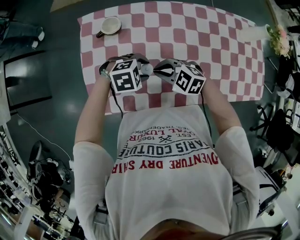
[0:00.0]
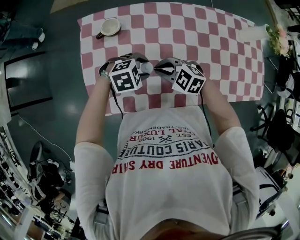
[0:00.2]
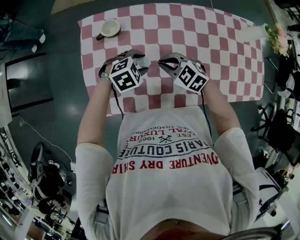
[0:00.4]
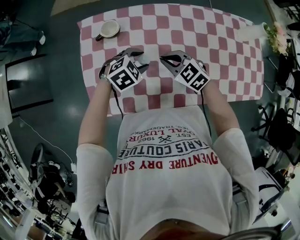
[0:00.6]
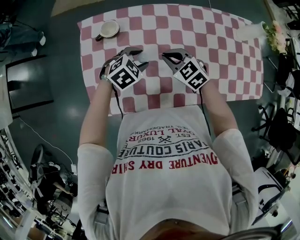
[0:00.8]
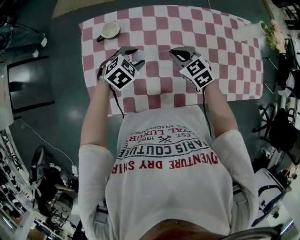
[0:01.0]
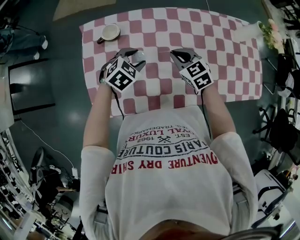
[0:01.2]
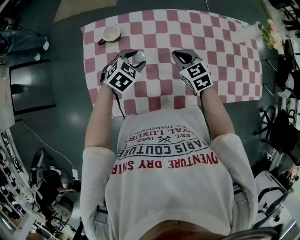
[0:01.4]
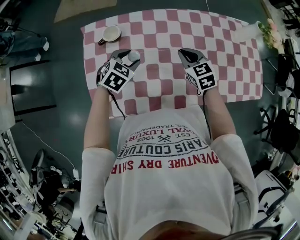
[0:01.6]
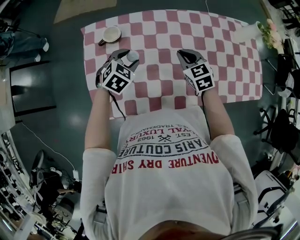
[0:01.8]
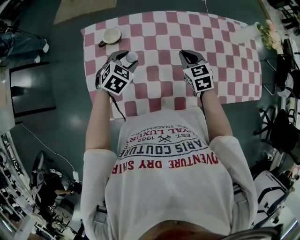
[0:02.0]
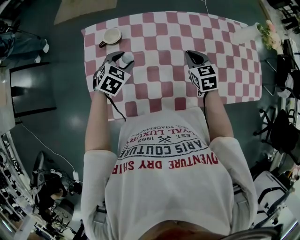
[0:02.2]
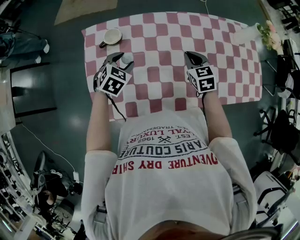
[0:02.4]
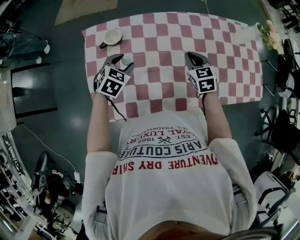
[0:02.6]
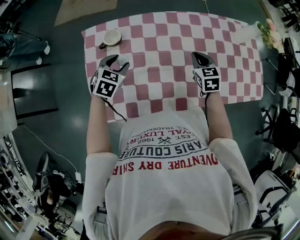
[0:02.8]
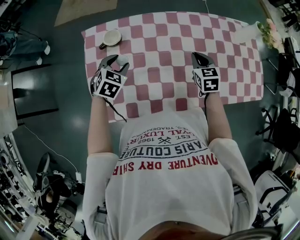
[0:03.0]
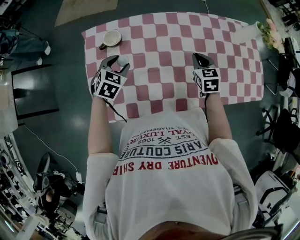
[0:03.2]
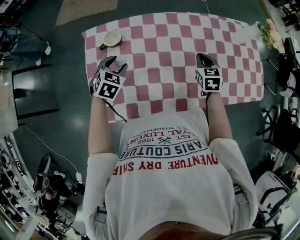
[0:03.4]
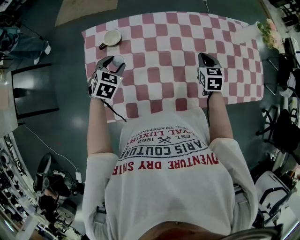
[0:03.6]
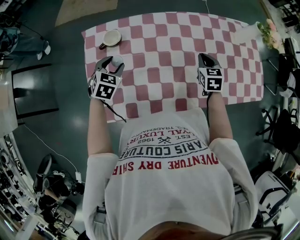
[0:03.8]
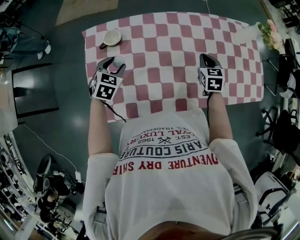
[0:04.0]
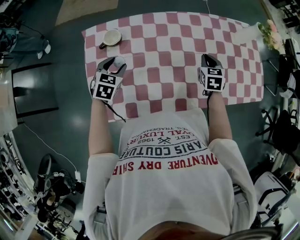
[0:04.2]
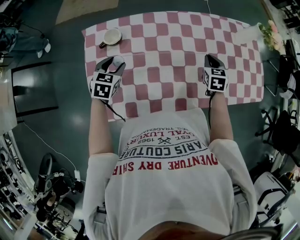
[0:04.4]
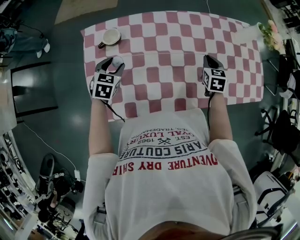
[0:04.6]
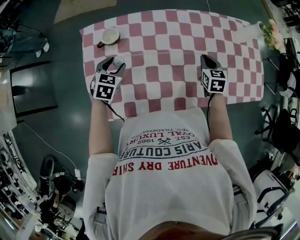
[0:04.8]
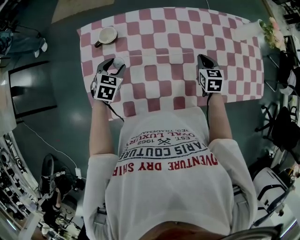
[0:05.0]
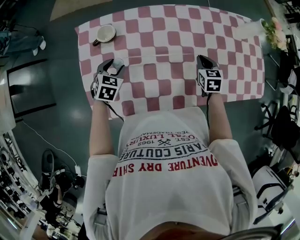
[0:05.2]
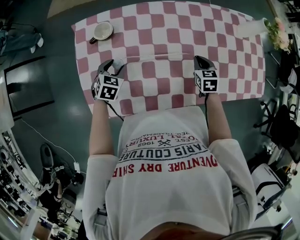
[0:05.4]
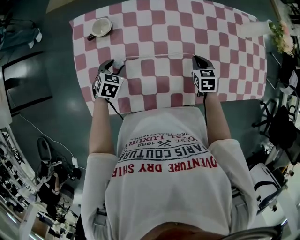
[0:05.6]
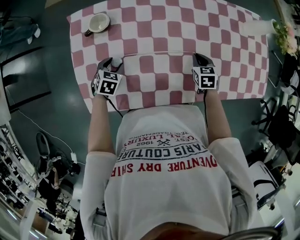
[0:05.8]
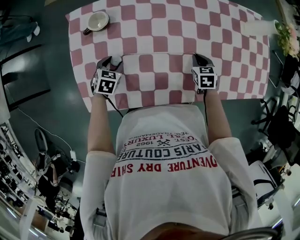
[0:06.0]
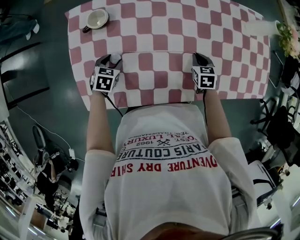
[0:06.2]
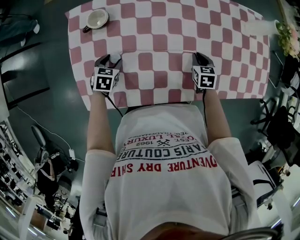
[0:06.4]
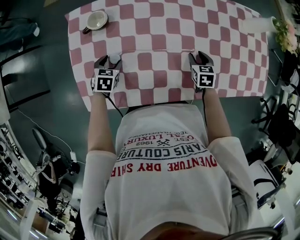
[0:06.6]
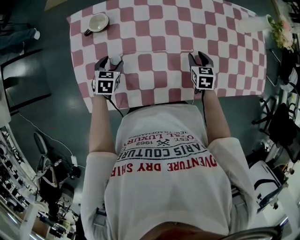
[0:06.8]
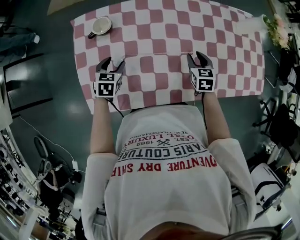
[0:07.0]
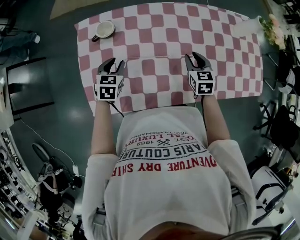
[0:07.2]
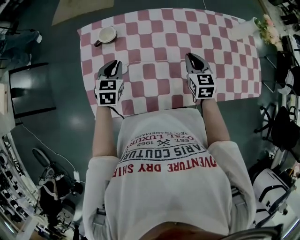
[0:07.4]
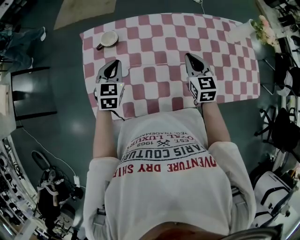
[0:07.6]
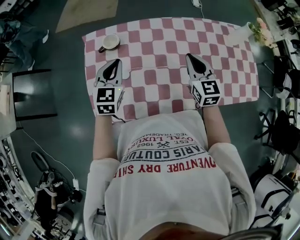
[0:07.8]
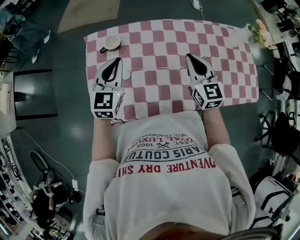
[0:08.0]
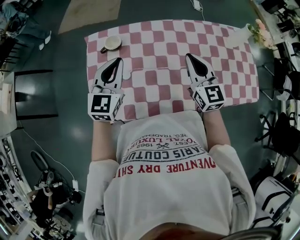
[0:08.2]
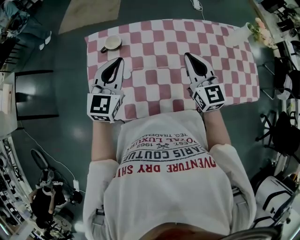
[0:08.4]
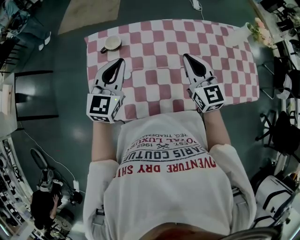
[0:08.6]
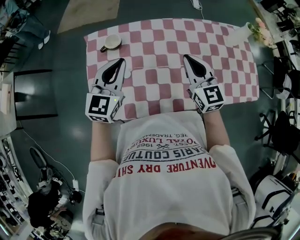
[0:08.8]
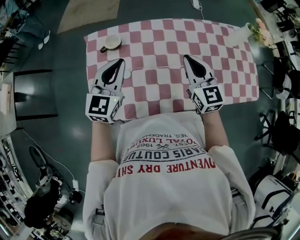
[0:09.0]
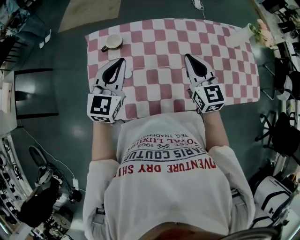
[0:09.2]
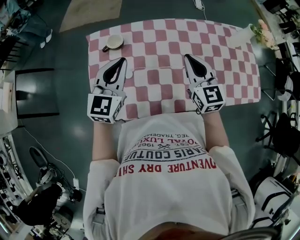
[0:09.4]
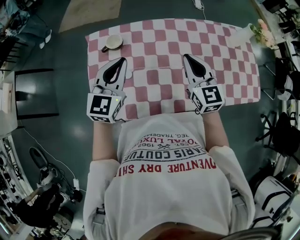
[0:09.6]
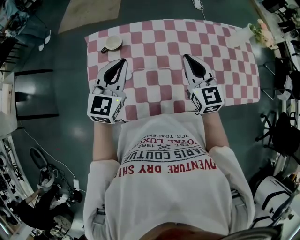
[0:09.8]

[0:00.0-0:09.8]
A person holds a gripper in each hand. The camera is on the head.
0:00.0 to 0:01.4: The right gripper changes place by approximately 15 cm, and turns by some 40 degrees. The left gripper shifts by about 10 cm, and turns by about 40 degrees.
0:01.4 to 0:02.8: The right gripper heads to the right, covering roughly 10 cm, and changes its angle by some 20 degrees, while the left gripper heads to the left, covering about 10 cm.
0:02.8 to 0:04.2: The right gripper moves to the right, approximately 5 cm.
0:04.2 to 0:05.6: The grippers both shift downward by about 10 cm.
0:05.6 to 0:07.0: The right gripper opens up.
0:07.0 to 0:08.4: The two grippers go some 25 cm upward. The left gripper tilts its fingers approximately 40 degrees upward, and closes; the right gripper angles its fingers upward, by roughly 40 degrees, and closes up.
0:08.4 to 0:09.8: The grippers move only a little.

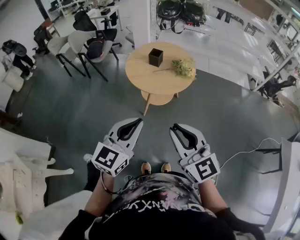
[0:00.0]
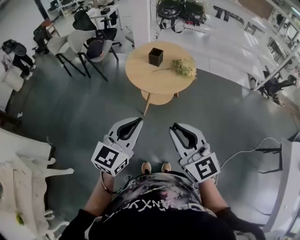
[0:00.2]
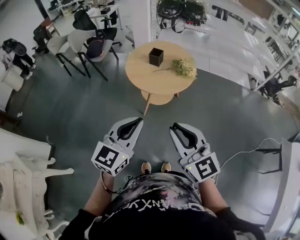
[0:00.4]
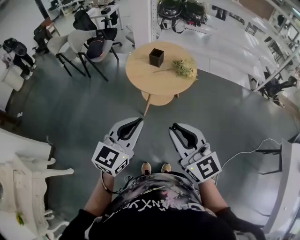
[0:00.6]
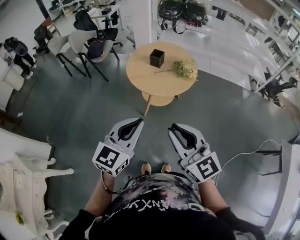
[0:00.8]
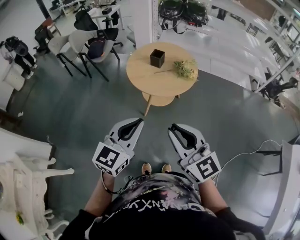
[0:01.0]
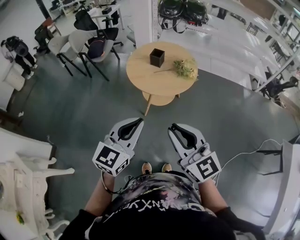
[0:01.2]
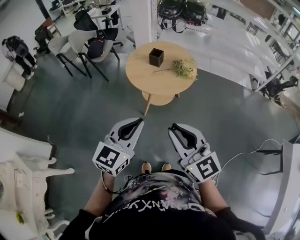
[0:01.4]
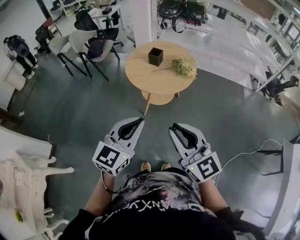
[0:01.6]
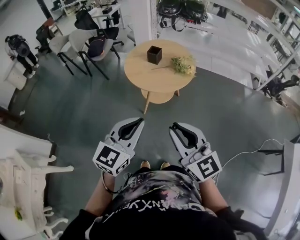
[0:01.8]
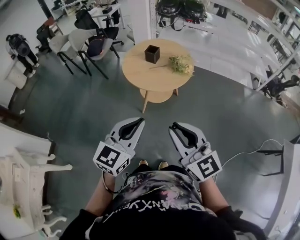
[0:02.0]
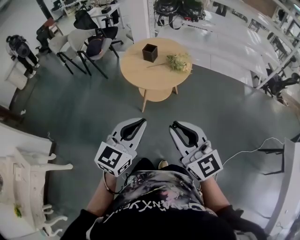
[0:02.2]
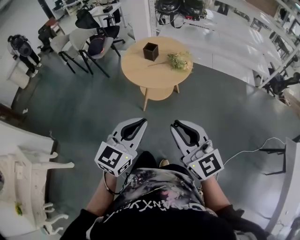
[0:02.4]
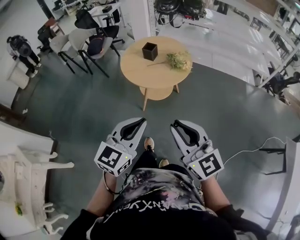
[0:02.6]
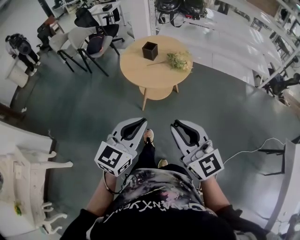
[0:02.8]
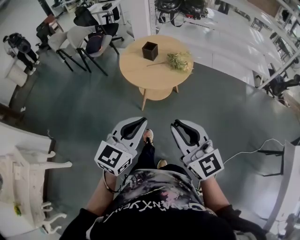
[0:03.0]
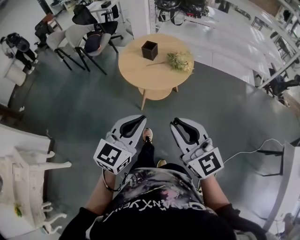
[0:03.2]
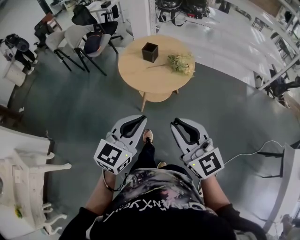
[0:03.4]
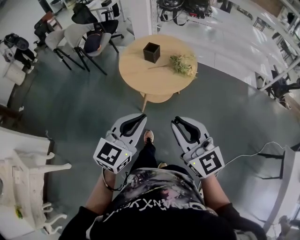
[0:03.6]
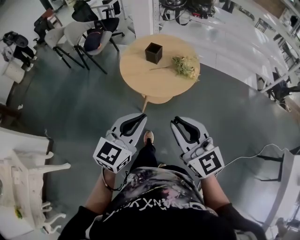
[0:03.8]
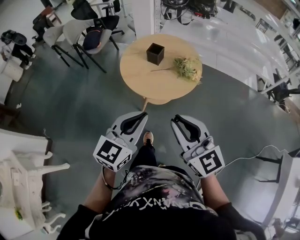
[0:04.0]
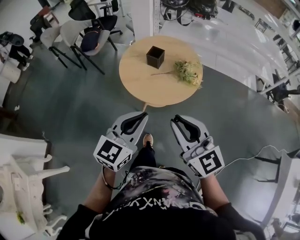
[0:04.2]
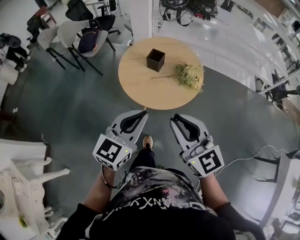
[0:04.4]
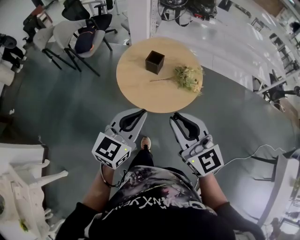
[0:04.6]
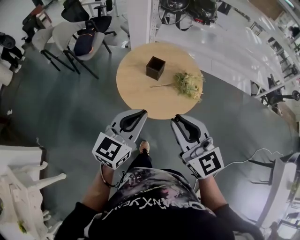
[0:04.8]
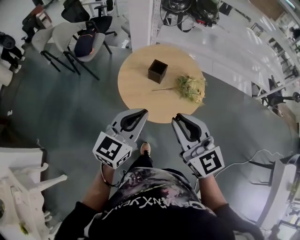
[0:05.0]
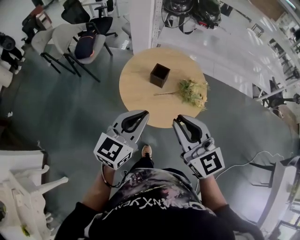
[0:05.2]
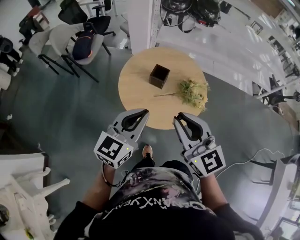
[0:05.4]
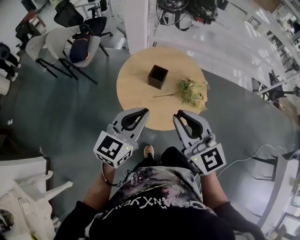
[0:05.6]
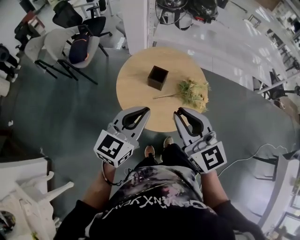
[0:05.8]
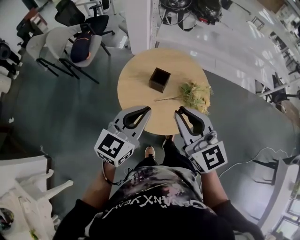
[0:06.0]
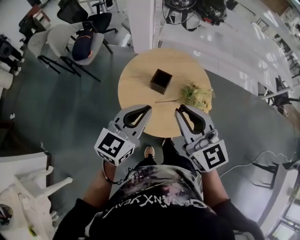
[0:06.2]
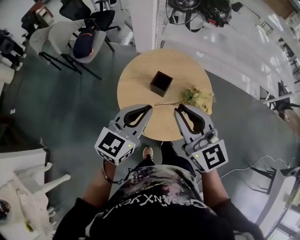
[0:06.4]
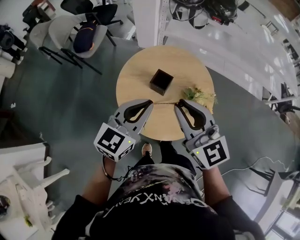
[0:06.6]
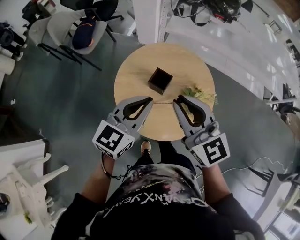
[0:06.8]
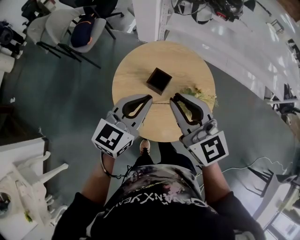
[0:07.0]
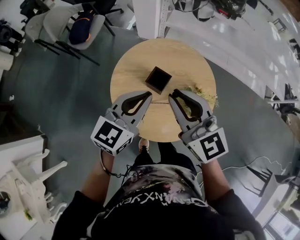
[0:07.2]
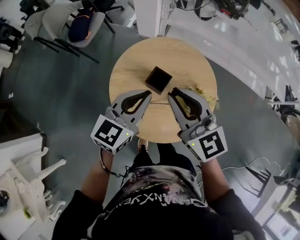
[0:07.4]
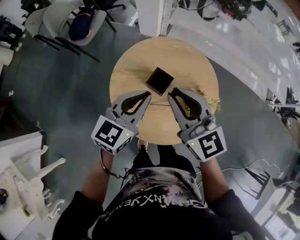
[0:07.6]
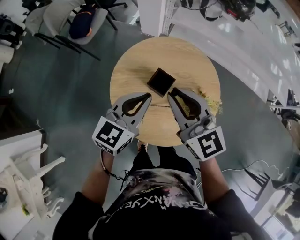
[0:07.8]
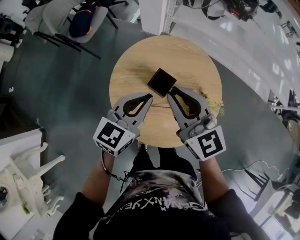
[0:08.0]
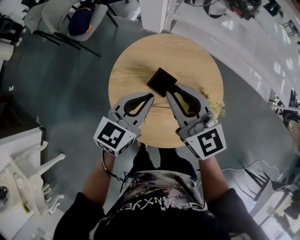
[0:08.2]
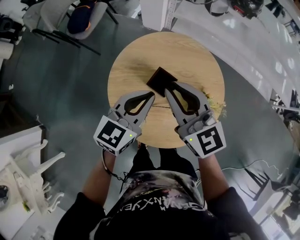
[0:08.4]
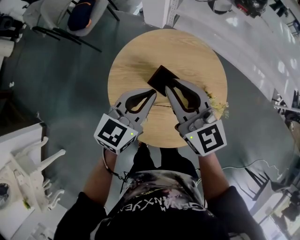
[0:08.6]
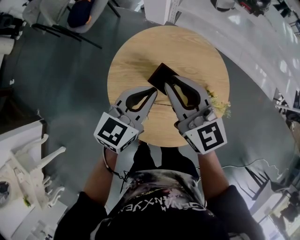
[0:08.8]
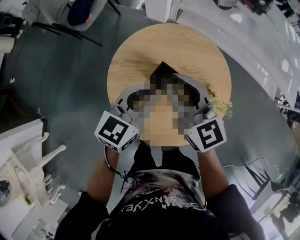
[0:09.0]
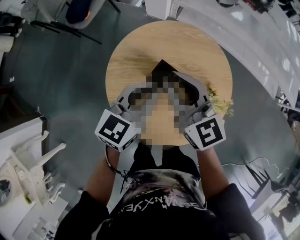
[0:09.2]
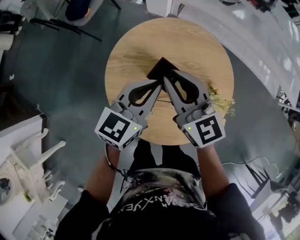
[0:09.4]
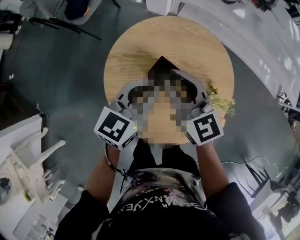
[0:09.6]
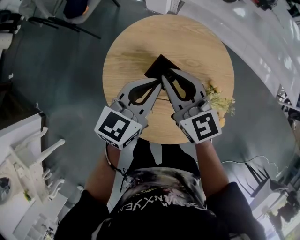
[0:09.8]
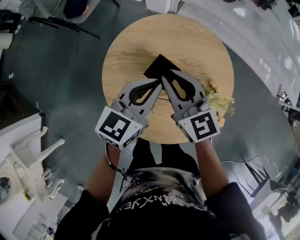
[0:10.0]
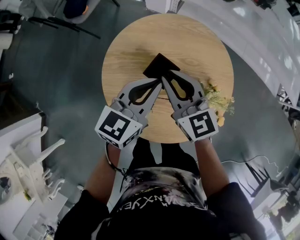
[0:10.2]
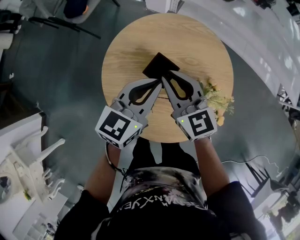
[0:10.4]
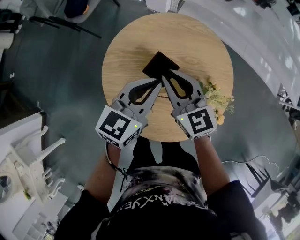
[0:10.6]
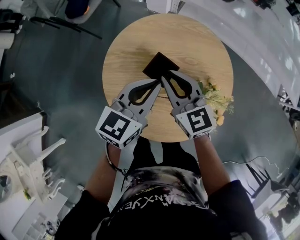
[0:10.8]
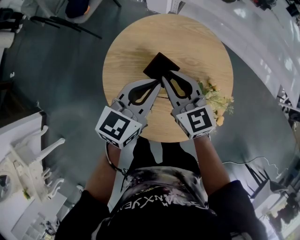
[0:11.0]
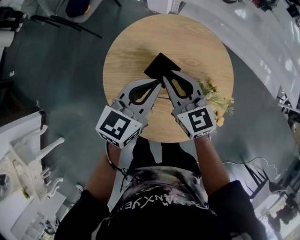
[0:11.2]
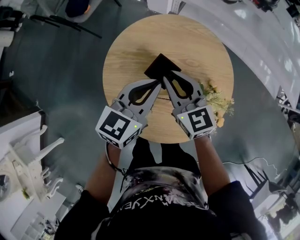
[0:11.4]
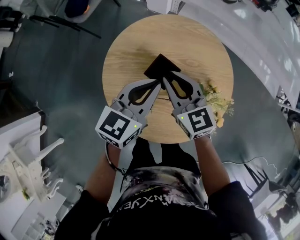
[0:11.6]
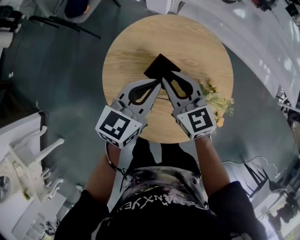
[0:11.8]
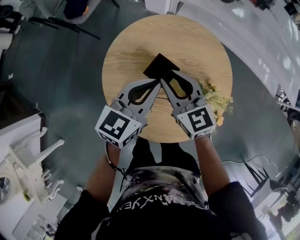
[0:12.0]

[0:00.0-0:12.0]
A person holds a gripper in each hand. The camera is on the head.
0:00.0 to 0:01.6: The grippers stay close to where they were, moving slightly.
0:01.6 to 0:03.0: Both grippers move to the right, some 10 cm.
0:03.0 to 0:04.4: The two grippers go roughly 20 cm forward.
0:04.4 to 0:06.0: Both grippers move forward, some 20 cm.
0:06.0 to 0:07.6: The left gripper moves forward and downward, some 15 cm, while the right gripper moves forward, some 15 cm.
0:07.6 to 0:09.0: The right gripper is displaced downward and forward by approximately 10 cm. Meanwhile the left gripper travels downward by about 5 cm.
0:09.0 to 0:10.4: The right gripper moves downward, about 10 cm.
0:10.4 to 0:12.0: There are only small adjustments of the grippers.

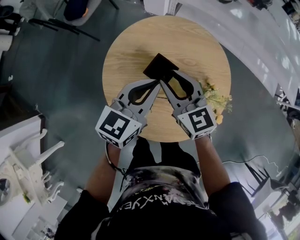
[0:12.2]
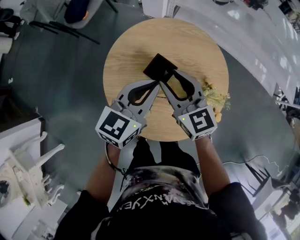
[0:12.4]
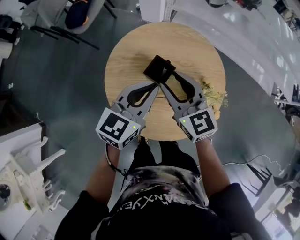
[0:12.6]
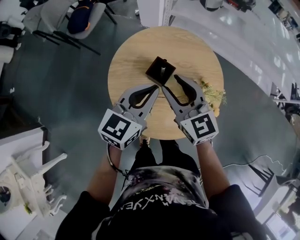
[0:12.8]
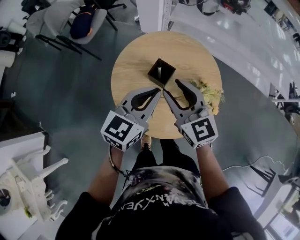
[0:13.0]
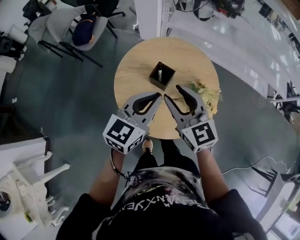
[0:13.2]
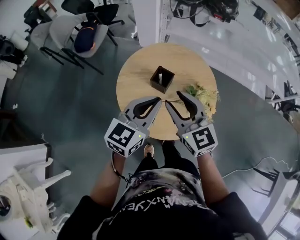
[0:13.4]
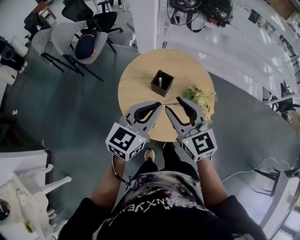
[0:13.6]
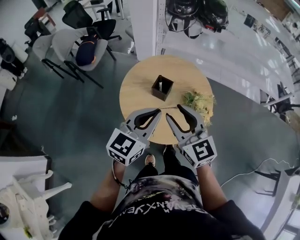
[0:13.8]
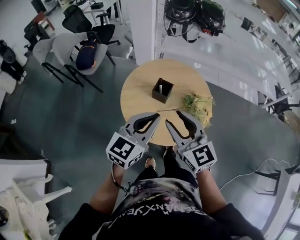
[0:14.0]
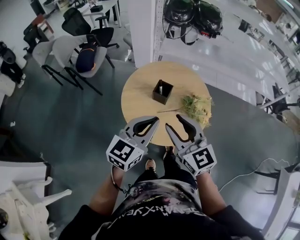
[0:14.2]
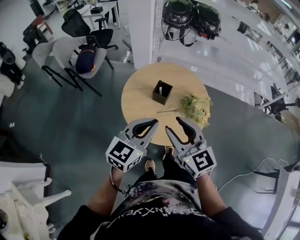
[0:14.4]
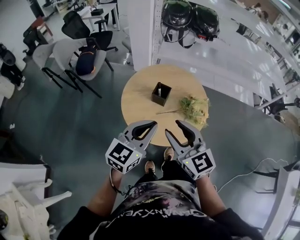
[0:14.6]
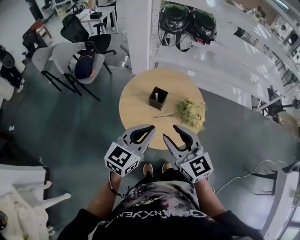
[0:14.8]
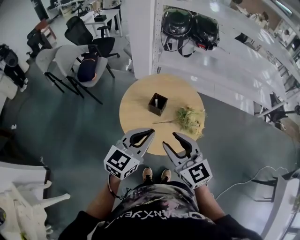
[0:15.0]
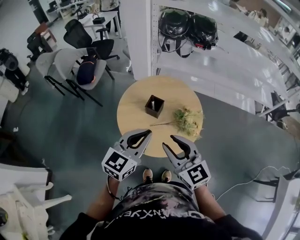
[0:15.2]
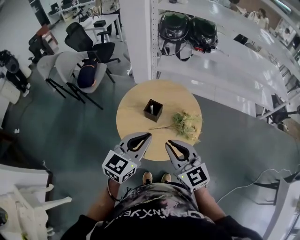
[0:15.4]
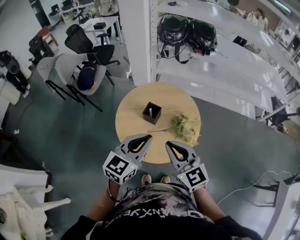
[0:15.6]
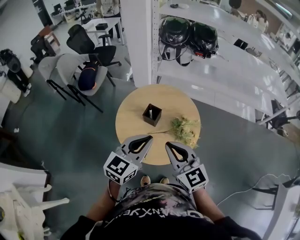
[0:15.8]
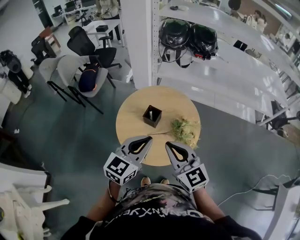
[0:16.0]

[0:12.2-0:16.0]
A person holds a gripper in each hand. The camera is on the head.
0:12.2 to 0:13.4: The grippers both shift backward and upward by about 15 cm.
0:13.4 to 0:14.8: The two grippers go some 15 cm backward and upward.
0:14.8 to 0:16.0: Both grippers travel together to the right, about 5 cm. The right gripper closes up.
